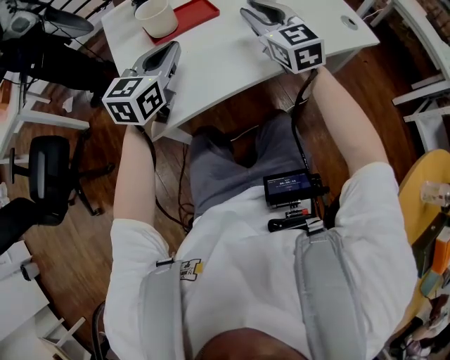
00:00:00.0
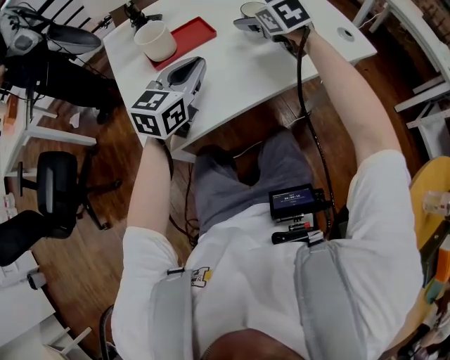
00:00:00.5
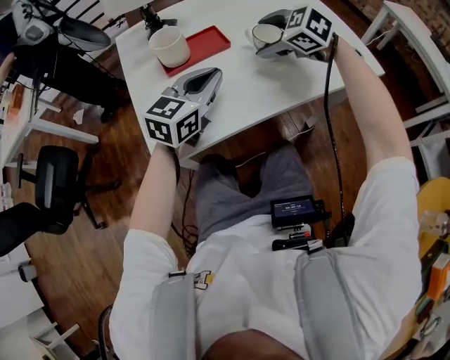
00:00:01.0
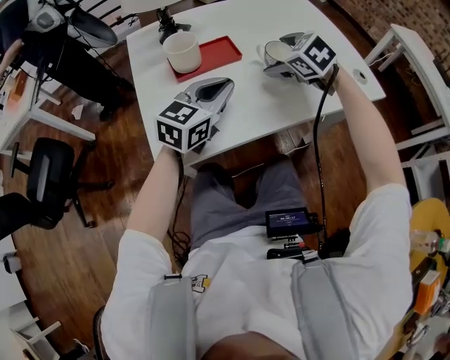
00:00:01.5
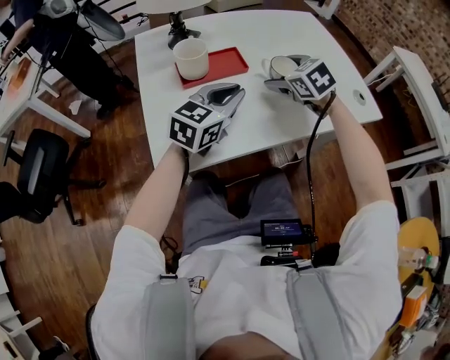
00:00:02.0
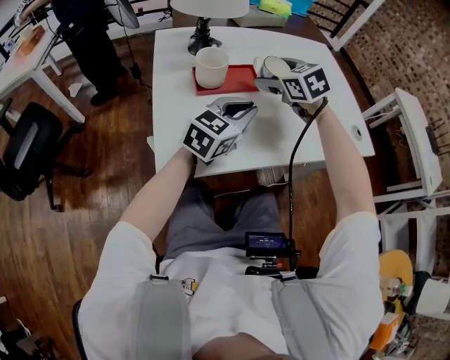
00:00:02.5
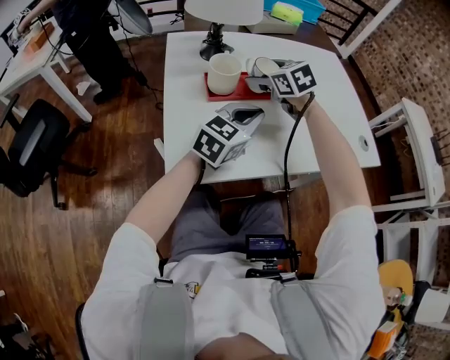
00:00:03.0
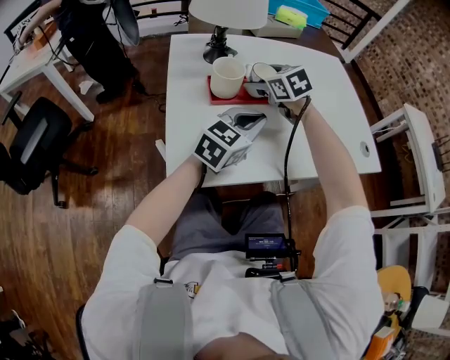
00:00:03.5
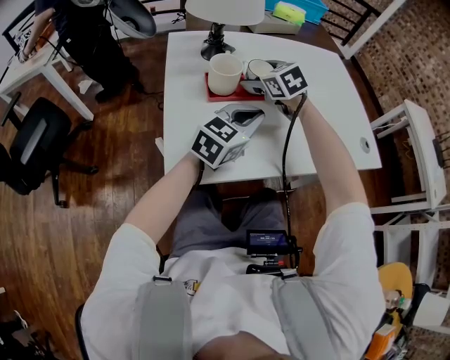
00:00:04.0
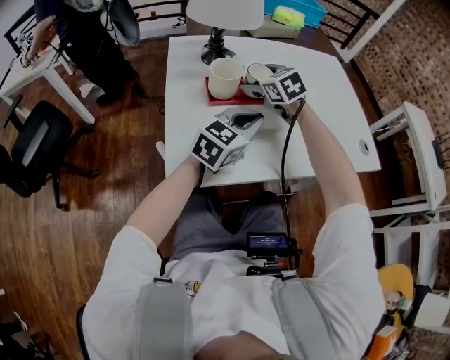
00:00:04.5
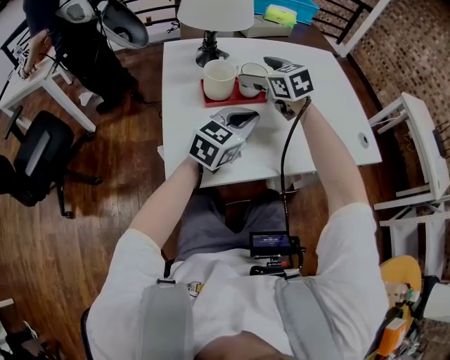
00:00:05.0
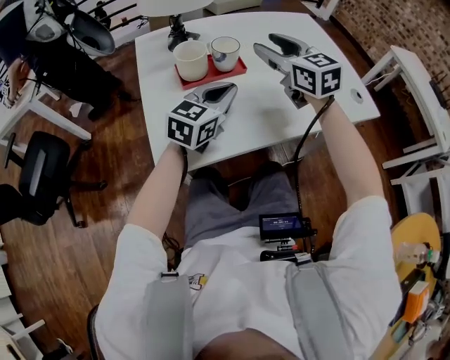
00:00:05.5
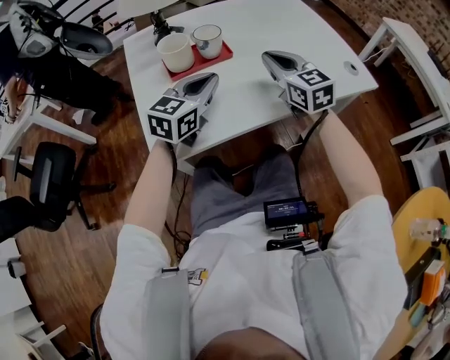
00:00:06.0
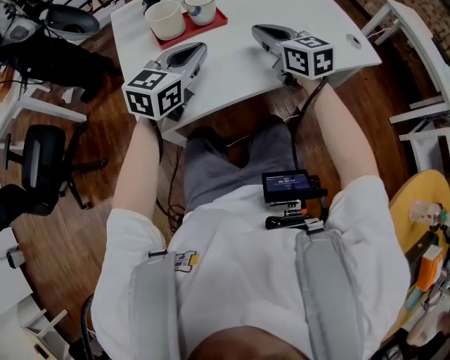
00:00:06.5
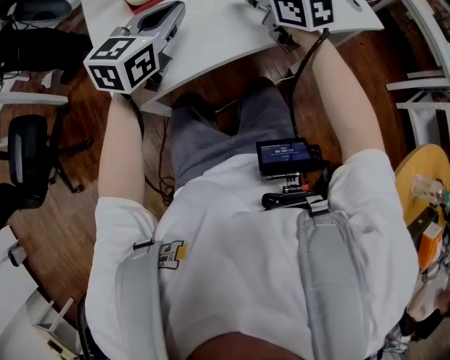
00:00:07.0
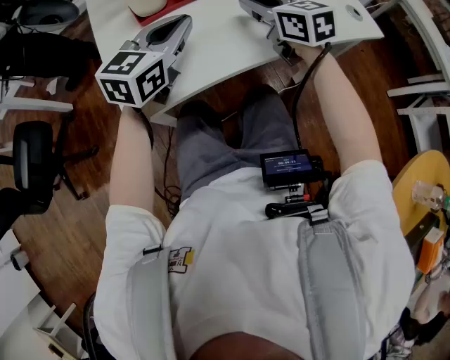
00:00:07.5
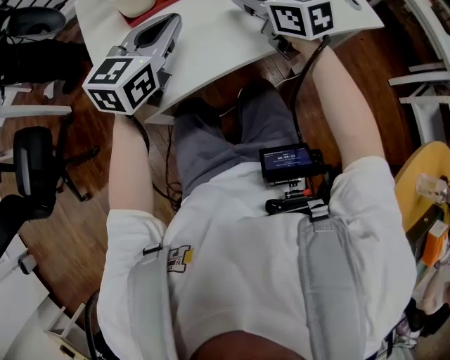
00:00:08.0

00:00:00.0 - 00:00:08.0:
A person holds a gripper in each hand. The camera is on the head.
00:00:00.0 - 00:00:02.0: The left gripper goes about 10 cm to the right. Meanwhile the right gripper is displaced forward and downward by roughly 10 cm, tips its fingers downward by roughly 40 degrees, and opens its fingers.
00:00:02.0 - 00:00:04.0: The right gripper travels to the left and forward by roughly 15 cm.
00:00:04.0 - 00:00:06.0: The right gripper travels to the right and backward by about 20 cm, rotates approximately 30 degrees, and closes its fingers.
00:00:06.0 - 00:00:08.0: The grippers stay close to where they were, moving slightly.

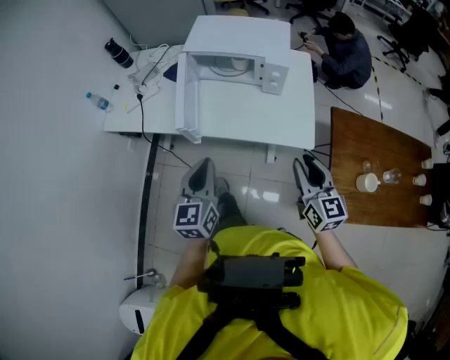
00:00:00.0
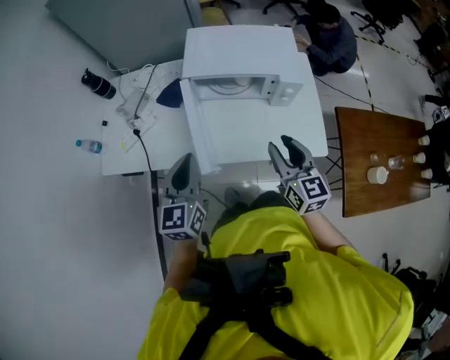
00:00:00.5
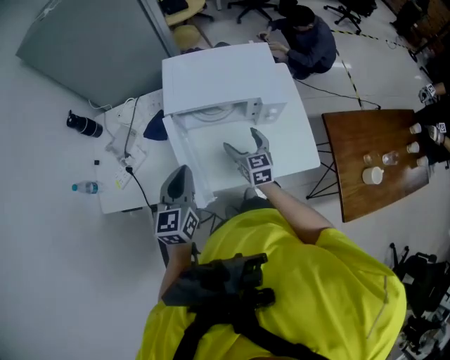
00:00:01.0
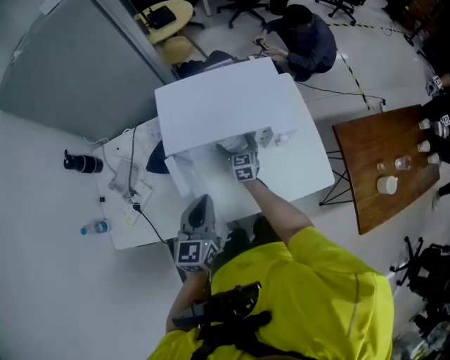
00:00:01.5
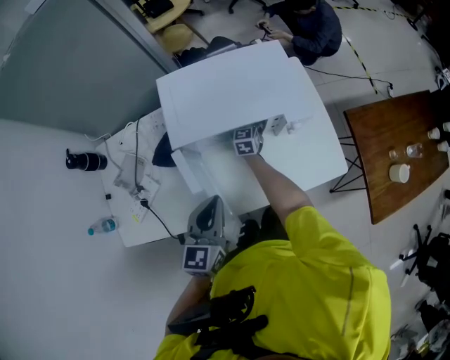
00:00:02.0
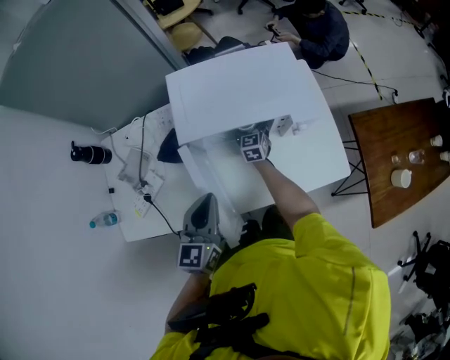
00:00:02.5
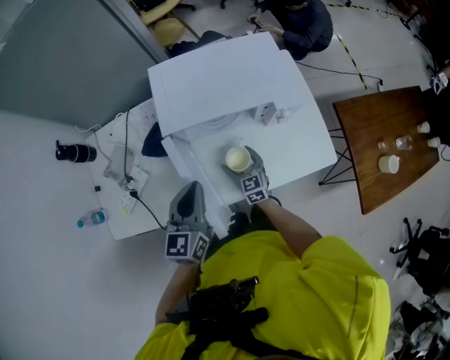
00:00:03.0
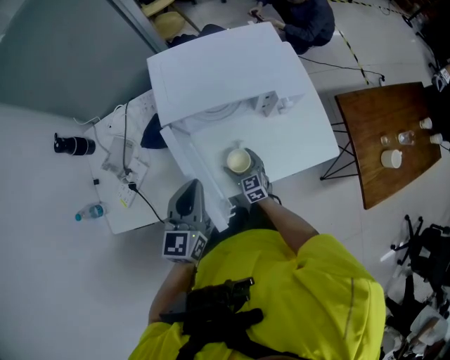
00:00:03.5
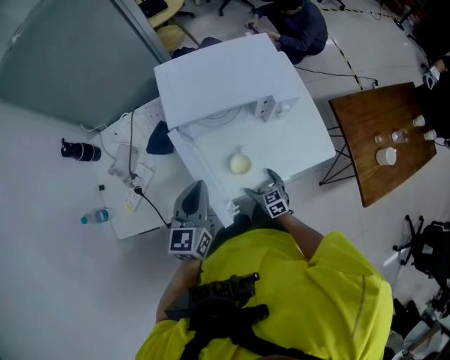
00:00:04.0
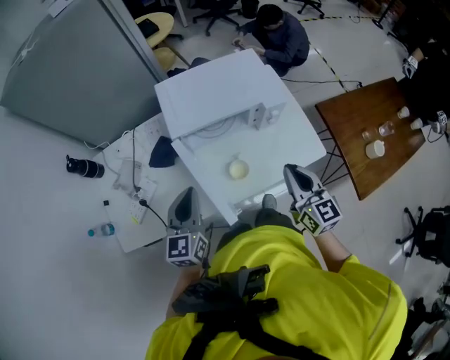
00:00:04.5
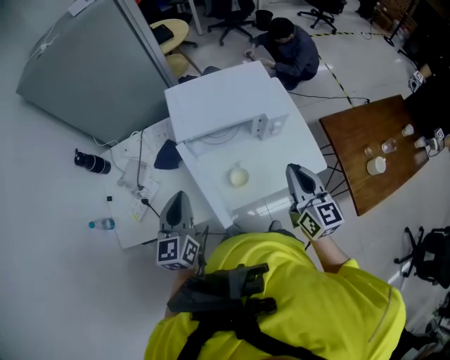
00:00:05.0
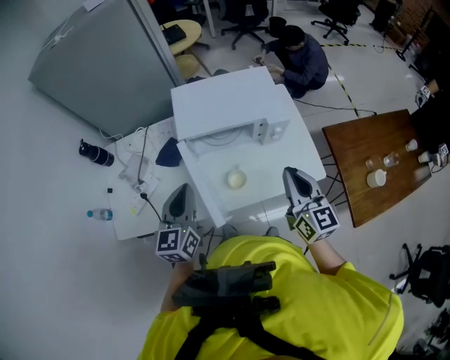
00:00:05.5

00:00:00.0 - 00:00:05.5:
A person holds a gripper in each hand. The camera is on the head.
00:00:00.0 - 00:00:02.0: The right gripper changes place by approximately 60 cm, turns by approximately 30 degrees, and opens its fingers. The left gripper shifts by some 30 cm, and swivels about 30 degrees.
00:00:02.0 - 00:00:03.5: The right gripper travels backward by roughly 25 cm.
00:00:03.5 - 00:00:05.5: The right gripper is displaced upward by about 40 cm, swivels approximately 30 degrees, and closes up. The left gripper travels upward by roughly 10 cm.

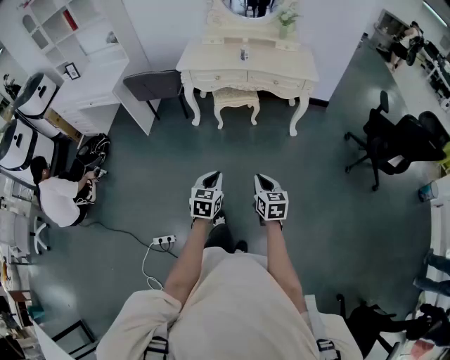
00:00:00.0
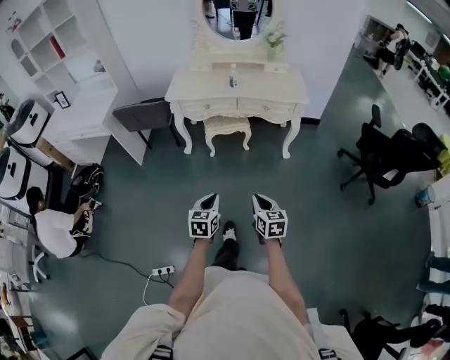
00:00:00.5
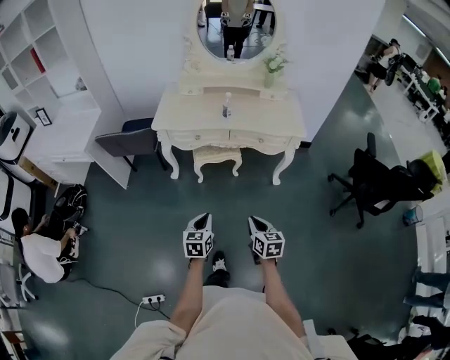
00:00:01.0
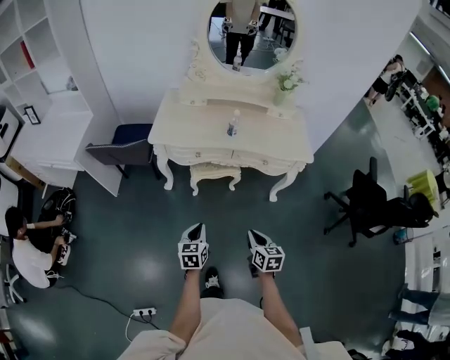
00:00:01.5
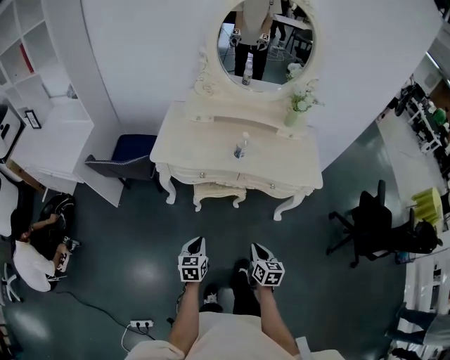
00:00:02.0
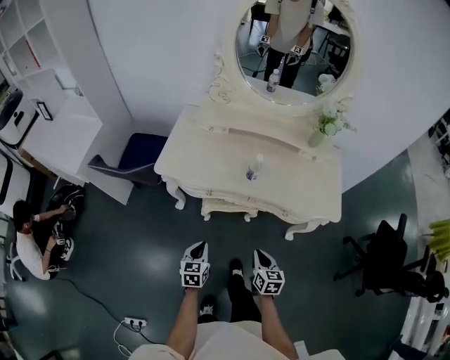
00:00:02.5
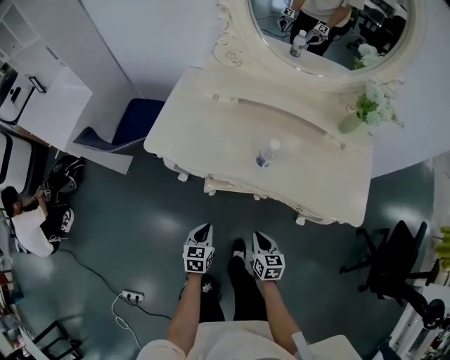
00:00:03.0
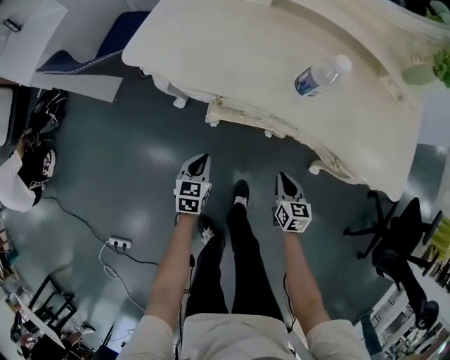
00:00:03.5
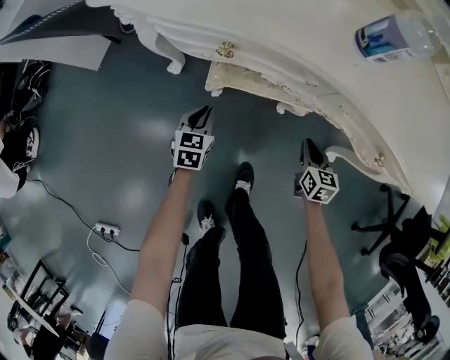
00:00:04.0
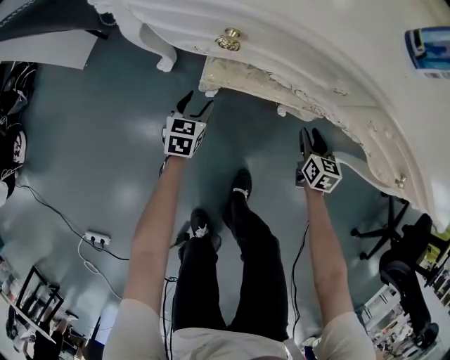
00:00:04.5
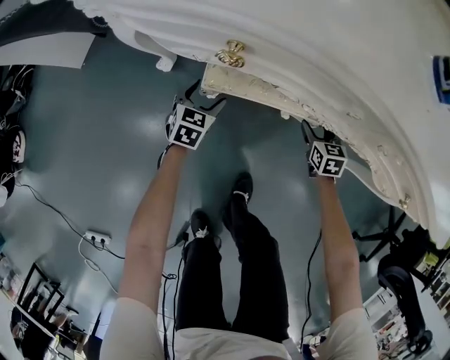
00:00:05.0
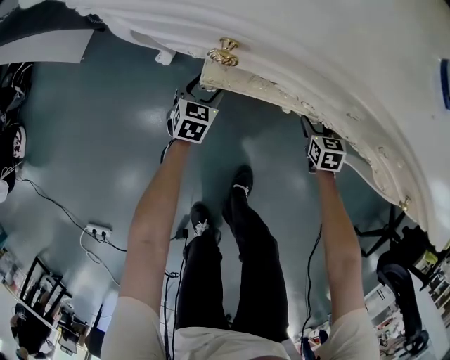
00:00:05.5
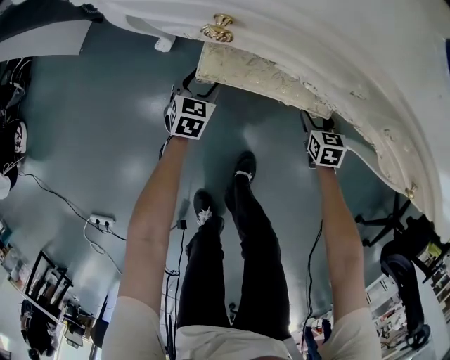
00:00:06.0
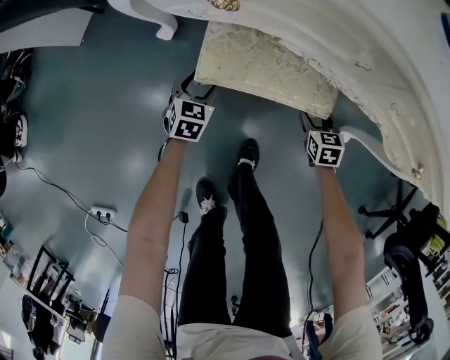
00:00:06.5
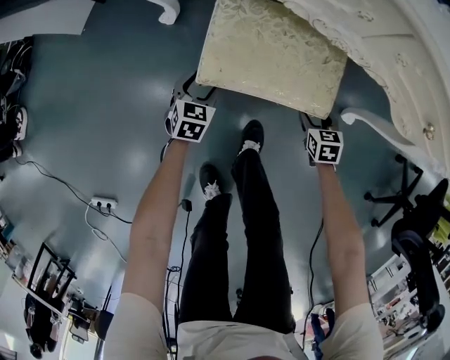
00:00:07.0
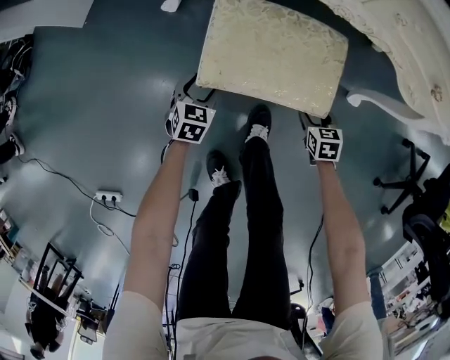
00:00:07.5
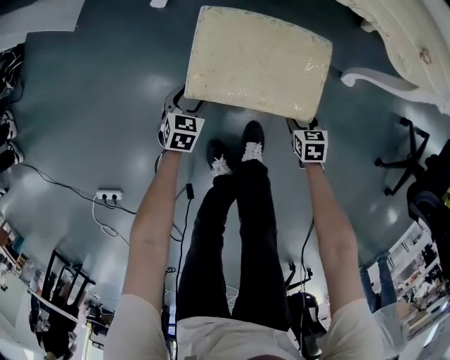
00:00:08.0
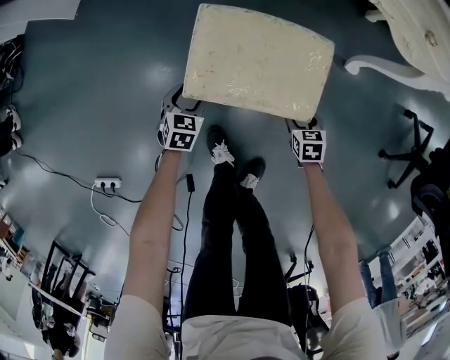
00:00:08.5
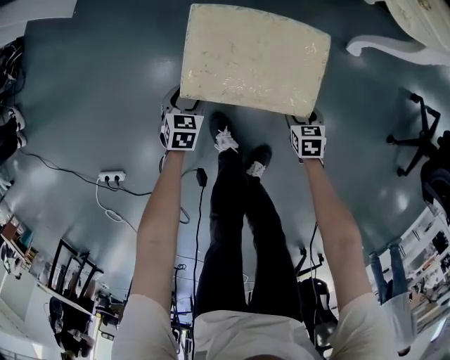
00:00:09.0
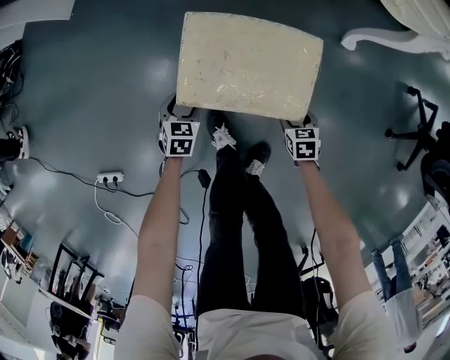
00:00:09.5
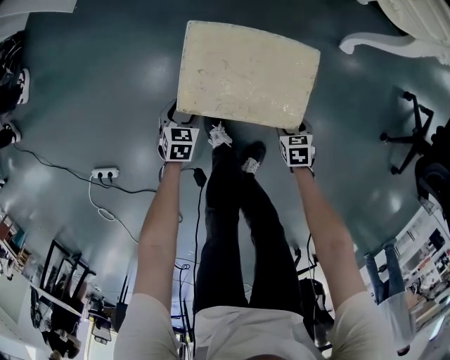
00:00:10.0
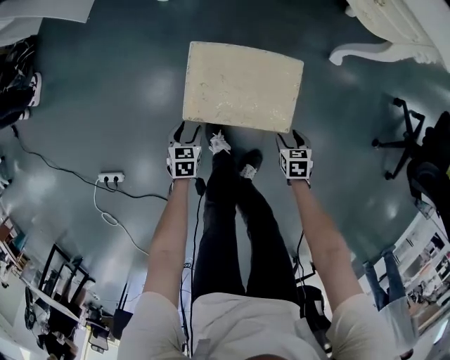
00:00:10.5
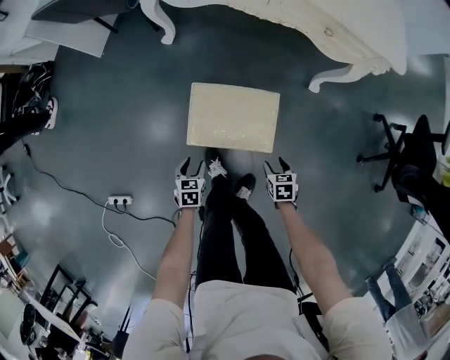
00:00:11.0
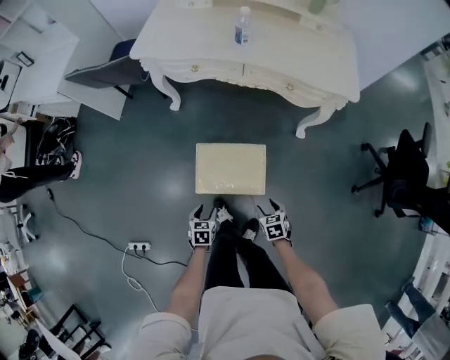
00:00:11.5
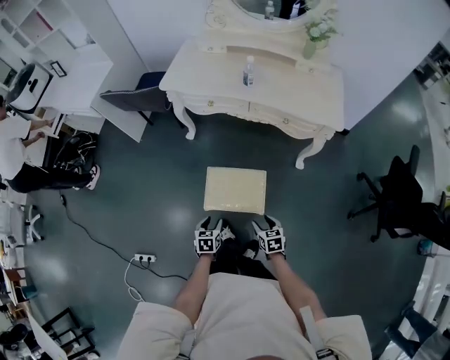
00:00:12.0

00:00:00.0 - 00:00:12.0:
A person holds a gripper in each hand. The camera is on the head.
00:00:00.0 - 00:00:02.0: The pair of grippers is taken forward, some 40 cm.
00:00:02.0 - 00:00:04.0: The grippers both shift downward and forward by about 50 cm.
00:00:04.0 - 00:00:06.0: The grippers both shift downward and forward by some 15 cm. The right gripper opens. Meanwhile the left gripper opens.
00:00:06.0 - 00:00:08.0: The two grippers go some 30 cm backward.
00:00:08.0 - 00:00:10.0: Both grippers travel together backward, approximately 20 cm.
00:00:10.0 - 00:00:12.0: Both grippers travel together upward, some 40 cm. The right gripper changes its angle by some 20 degrees.

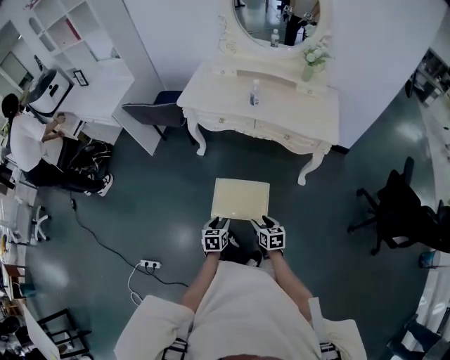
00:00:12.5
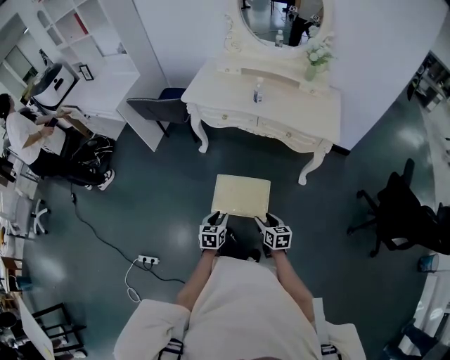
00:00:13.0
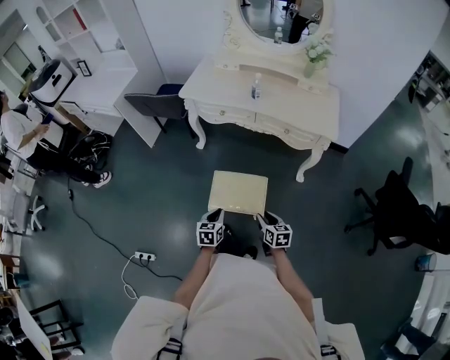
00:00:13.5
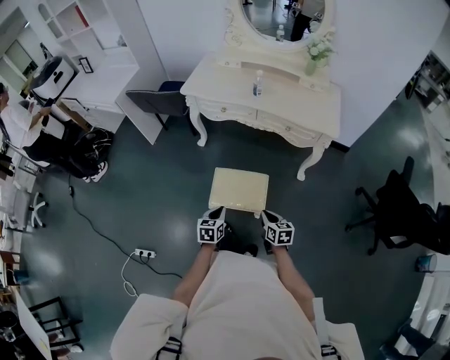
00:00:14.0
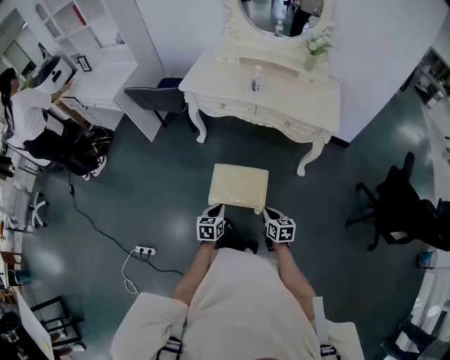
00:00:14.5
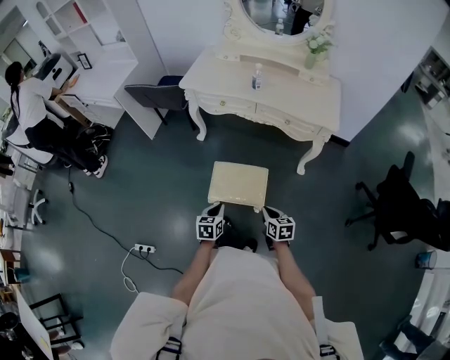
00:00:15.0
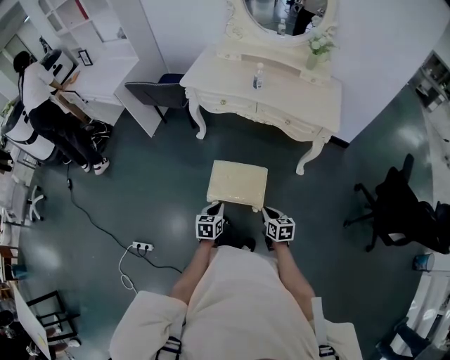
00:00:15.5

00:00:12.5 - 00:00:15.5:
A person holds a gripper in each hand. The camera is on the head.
00:00:12.5 - 00:00:14.0: The right gripper closes its fingers; the left gripper closes.
00:00:14.0 - 00:00:15.5: The grippers stay close to where they were, moving slightly.
